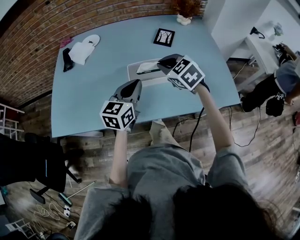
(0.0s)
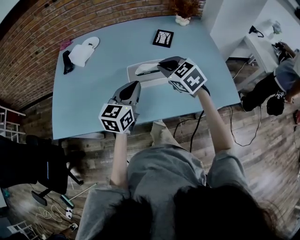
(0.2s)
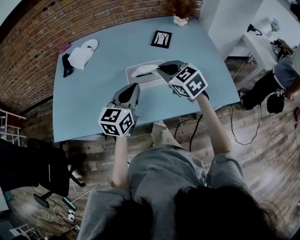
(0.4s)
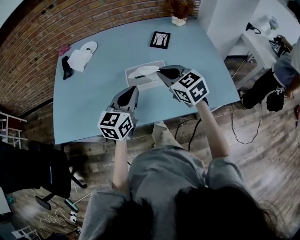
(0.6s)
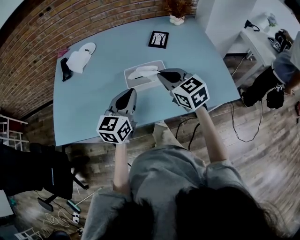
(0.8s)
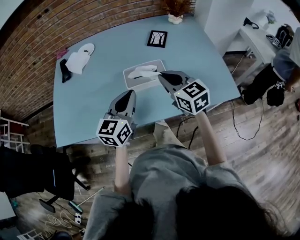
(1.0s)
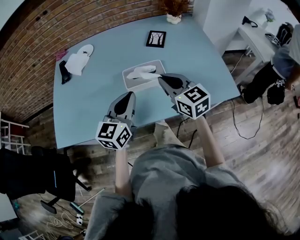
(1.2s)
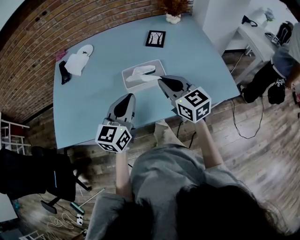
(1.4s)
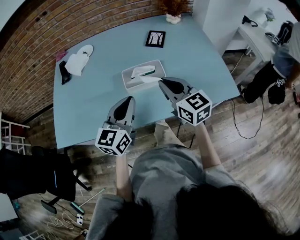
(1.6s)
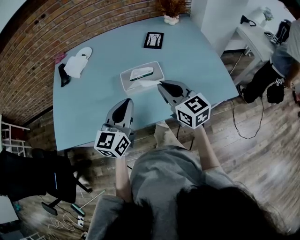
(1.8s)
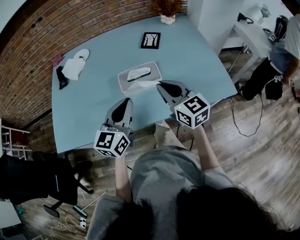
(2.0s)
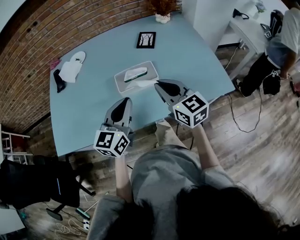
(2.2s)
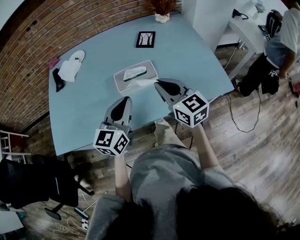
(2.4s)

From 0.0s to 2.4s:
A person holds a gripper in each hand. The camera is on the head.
From 0.0s to 1.2s: The left gripper moves some 5 cm; the right gripper is displaced backward by about 5 cm, and turns by roughly 30 degrees.
From 1.2s to 2.4s: There are only small adjustments of the grippers.

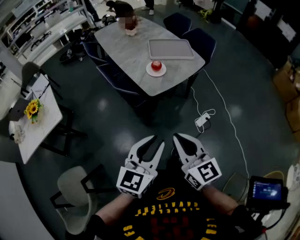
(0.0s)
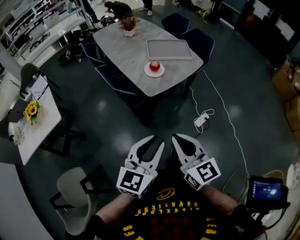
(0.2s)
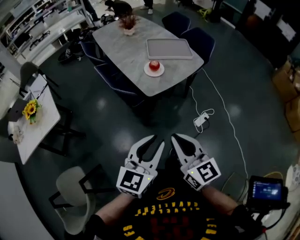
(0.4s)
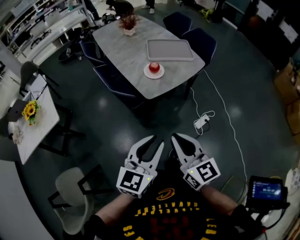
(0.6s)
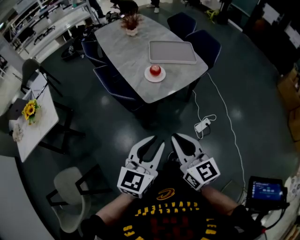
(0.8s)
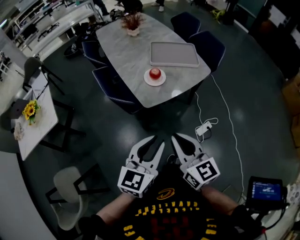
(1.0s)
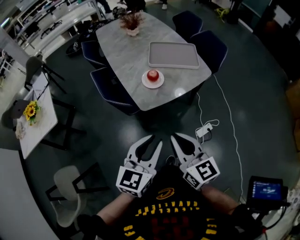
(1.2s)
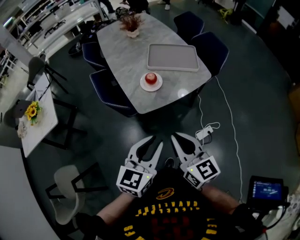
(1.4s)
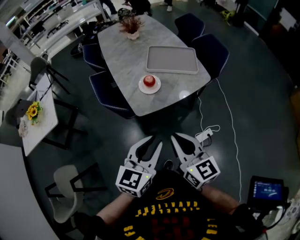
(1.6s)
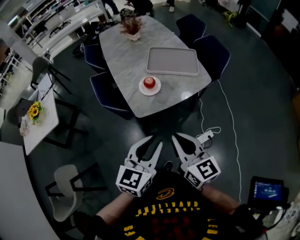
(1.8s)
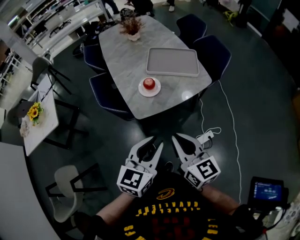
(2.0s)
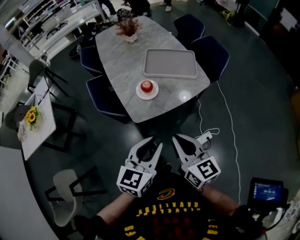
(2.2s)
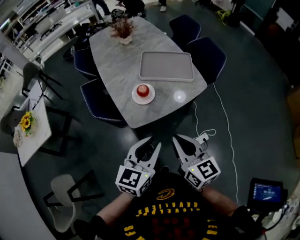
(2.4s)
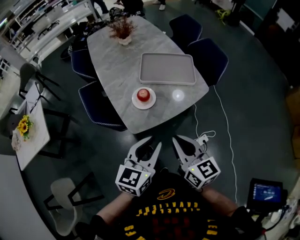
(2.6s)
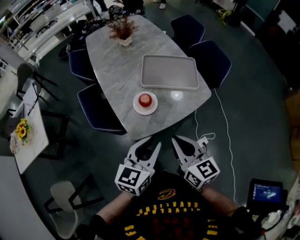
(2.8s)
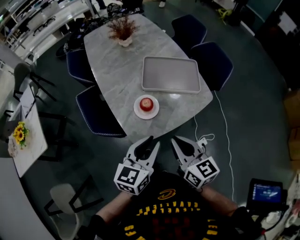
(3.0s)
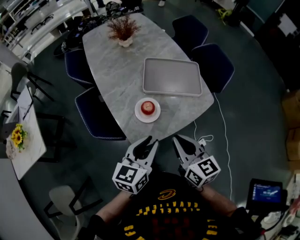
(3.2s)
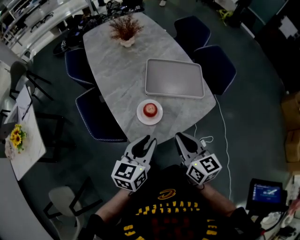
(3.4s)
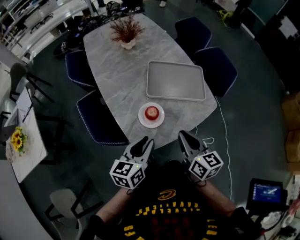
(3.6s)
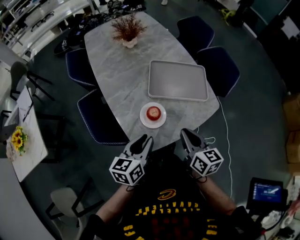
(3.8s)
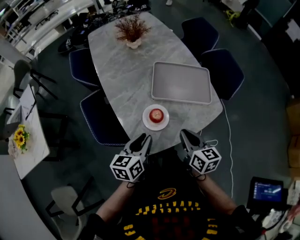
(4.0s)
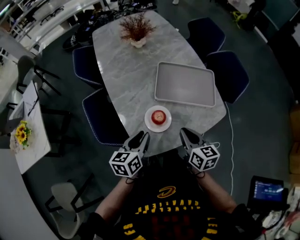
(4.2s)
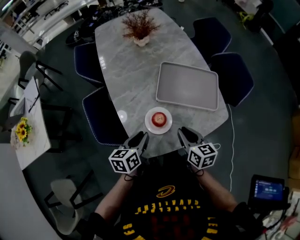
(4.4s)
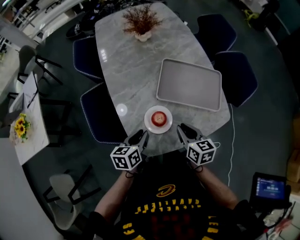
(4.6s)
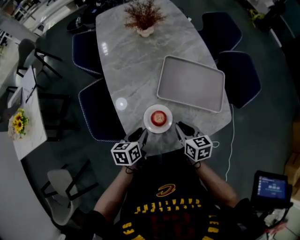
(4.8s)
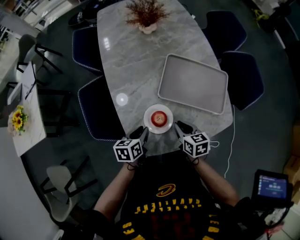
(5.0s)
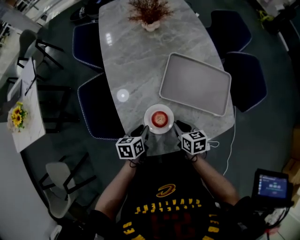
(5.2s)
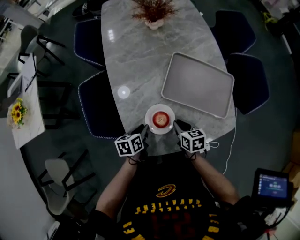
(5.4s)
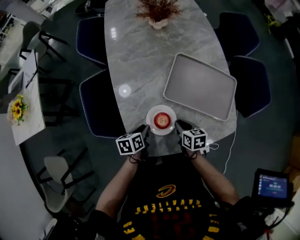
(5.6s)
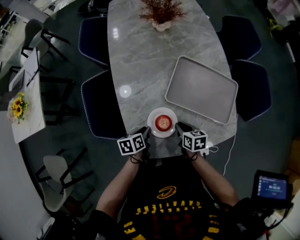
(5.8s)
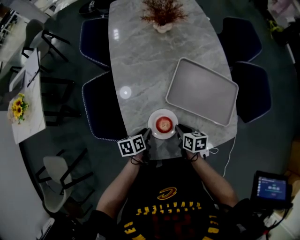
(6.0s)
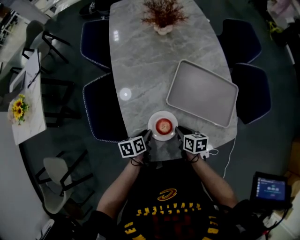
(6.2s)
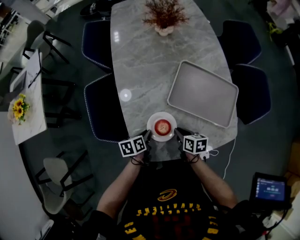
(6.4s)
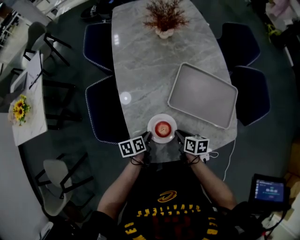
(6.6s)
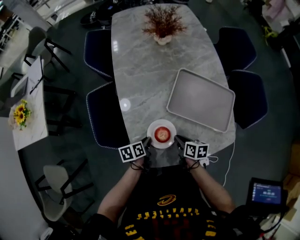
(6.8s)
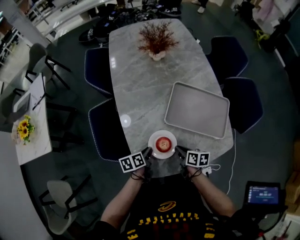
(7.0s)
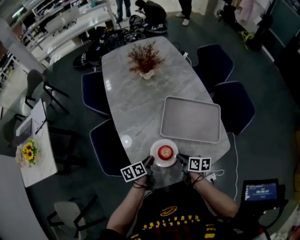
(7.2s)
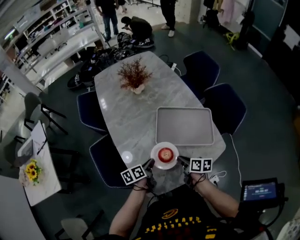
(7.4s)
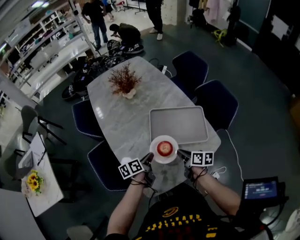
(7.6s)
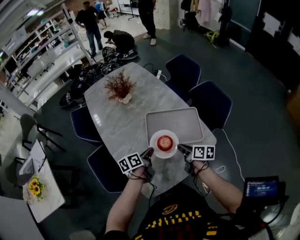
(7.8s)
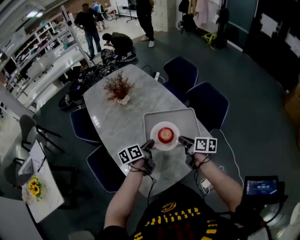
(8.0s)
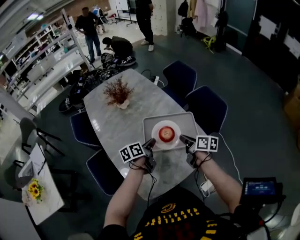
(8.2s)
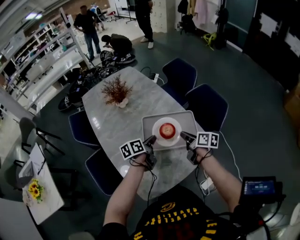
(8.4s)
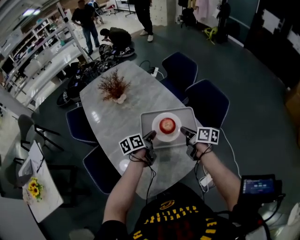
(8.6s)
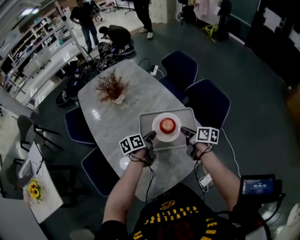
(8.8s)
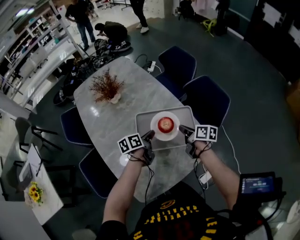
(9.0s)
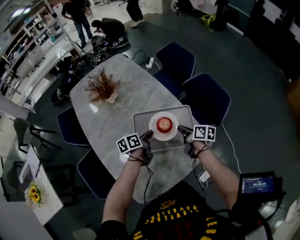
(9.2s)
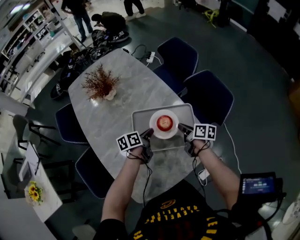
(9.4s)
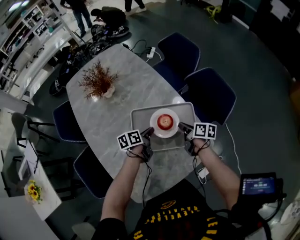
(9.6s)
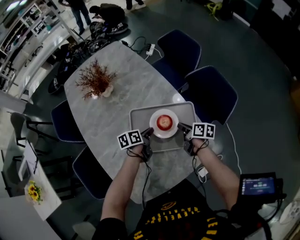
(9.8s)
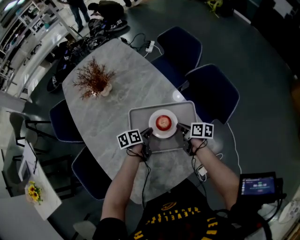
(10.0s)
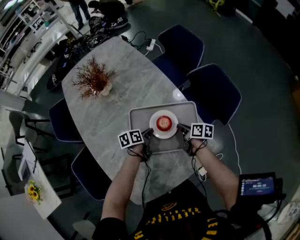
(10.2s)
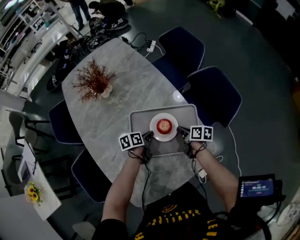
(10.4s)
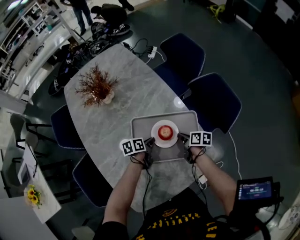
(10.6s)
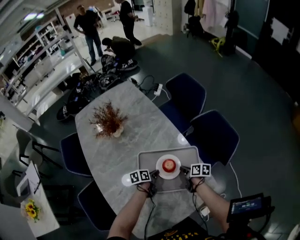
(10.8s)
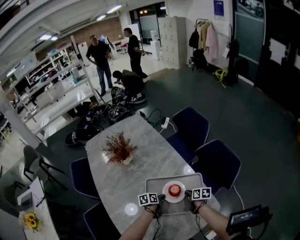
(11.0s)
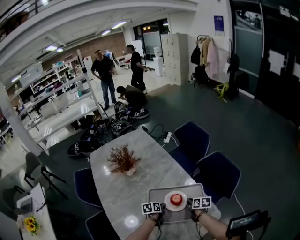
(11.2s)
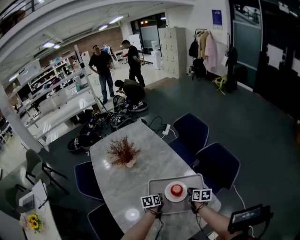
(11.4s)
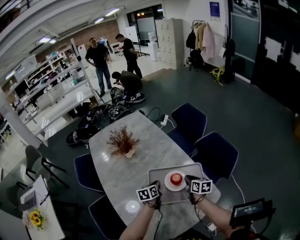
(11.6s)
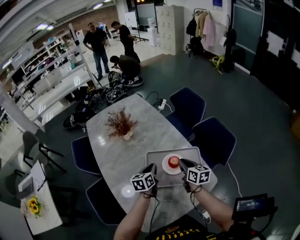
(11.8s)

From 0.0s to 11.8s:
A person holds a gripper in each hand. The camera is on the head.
From 0.0s to 1.4s: The two grippers go some 20 cm forward and to the right.
From 1.4s to 3.0s: Both grippers travel together forward, roughly 20 cm.
From 3.0s to 4.4s: The left gripper travels downward, forward and to the left by some 20 cm, and turns by approximately 30 degrees. Meanwhile the right gripper is displaced forward and downward by roughly 20 cm.
From 4.4s to 6.0s: Both grippers move downward, approximately 15 cm. The right gripper turns by some 30 degrees. The left gripper swivels approximately 30 degrees.
From 6.0s to 7.4s: The left gripper is displaced upward and forward by about 10 cm; the right gripper is displaced upward by approximately 10 cm, and changes its angle by roughly 30 degrees.
From 7.4s to 8.8s: Both grippers move forward, to the right and upward, some 20 cm.
From 8.8s to 10.4s: The grippers both shift downward and forward by approximately 15 cm.
From 10.4s to 11.8s: Both grippers move upward, roughly 15 cm. The left gripper rotates roughly 40 degrees; the right gripper turns by about 40 degrees.

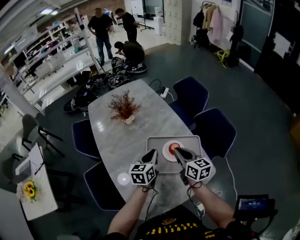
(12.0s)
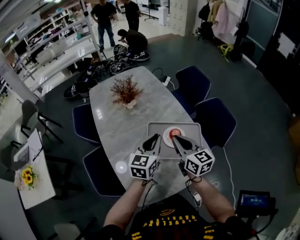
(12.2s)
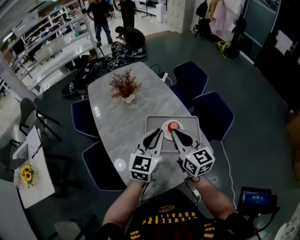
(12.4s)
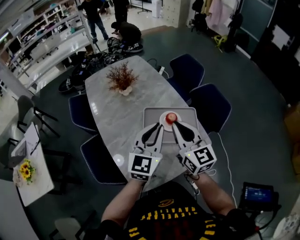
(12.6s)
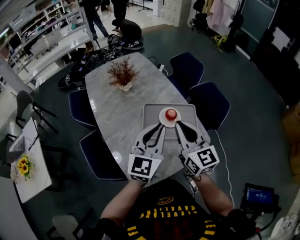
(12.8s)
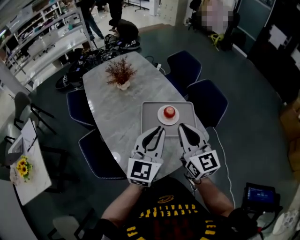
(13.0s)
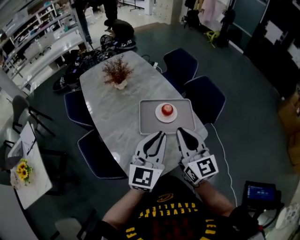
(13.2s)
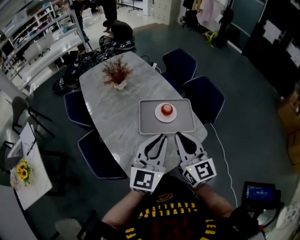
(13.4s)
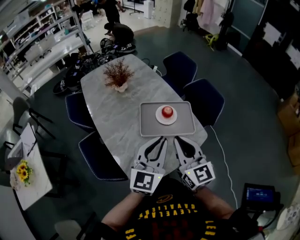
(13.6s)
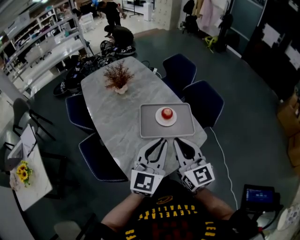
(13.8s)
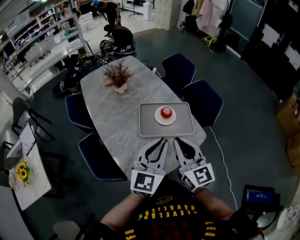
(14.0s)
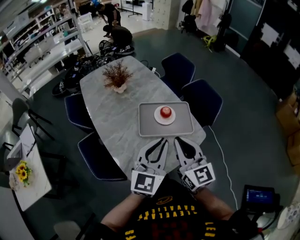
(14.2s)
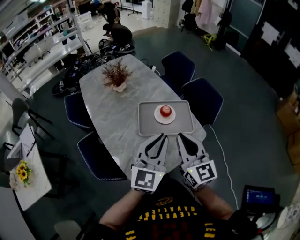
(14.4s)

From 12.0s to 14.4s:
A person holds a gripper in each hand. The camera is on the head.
From 12.0s to 13.2s: The grippers both shift backward and upward by about 25 cm. The left gripper turns by approximately 30 degrees; the right gripper turns by about 30 degrees.
From 13.2s to 14.4s: The grippers stay close to where they were, moving slightly.

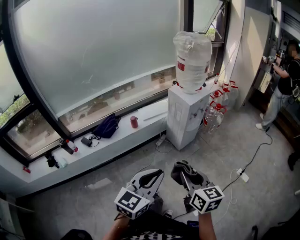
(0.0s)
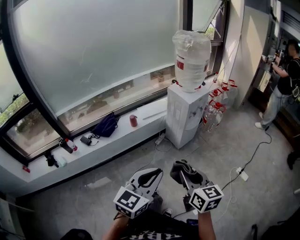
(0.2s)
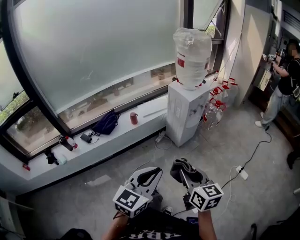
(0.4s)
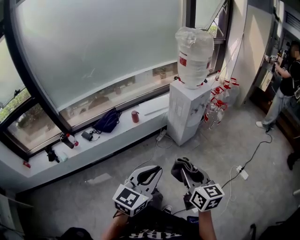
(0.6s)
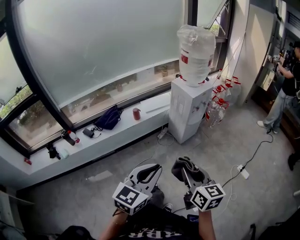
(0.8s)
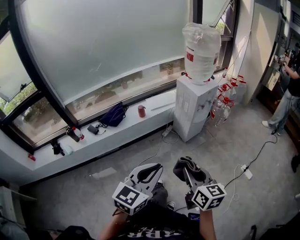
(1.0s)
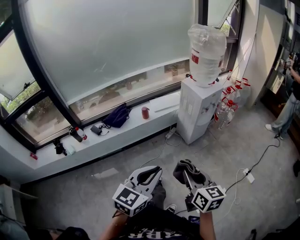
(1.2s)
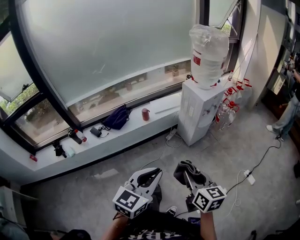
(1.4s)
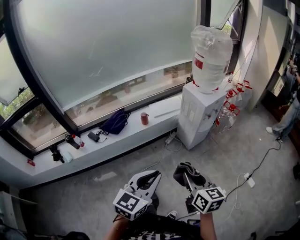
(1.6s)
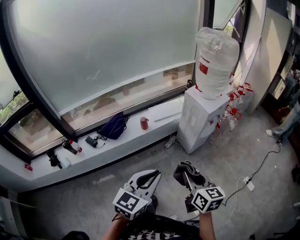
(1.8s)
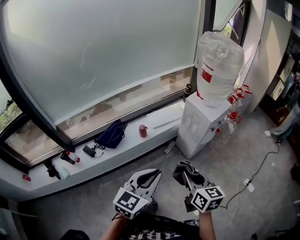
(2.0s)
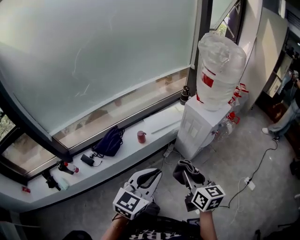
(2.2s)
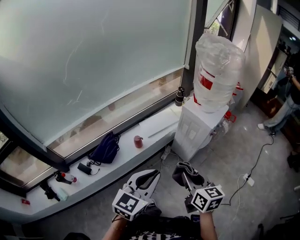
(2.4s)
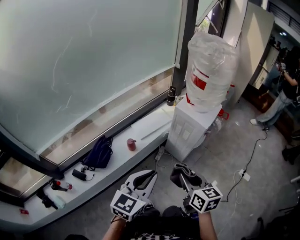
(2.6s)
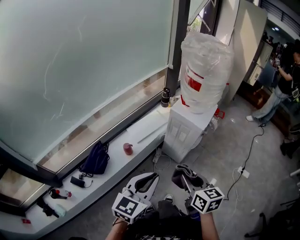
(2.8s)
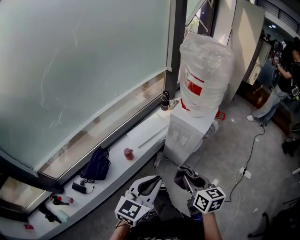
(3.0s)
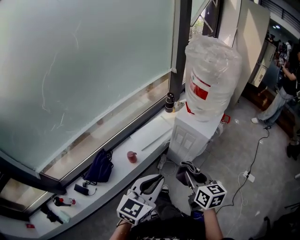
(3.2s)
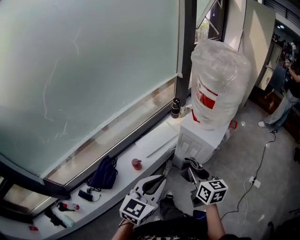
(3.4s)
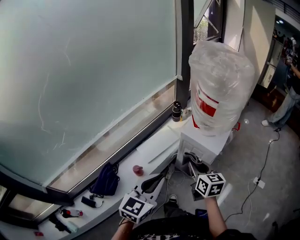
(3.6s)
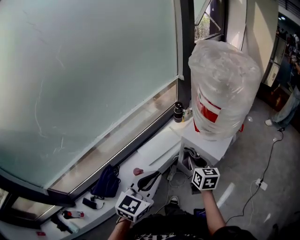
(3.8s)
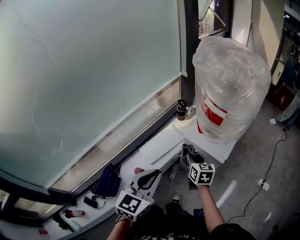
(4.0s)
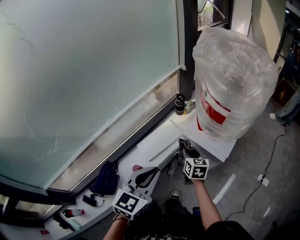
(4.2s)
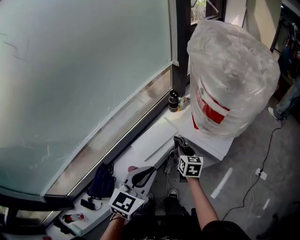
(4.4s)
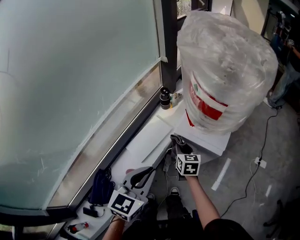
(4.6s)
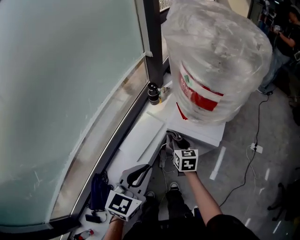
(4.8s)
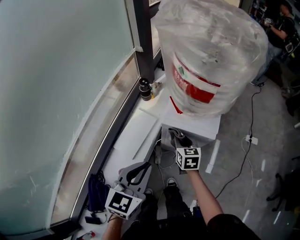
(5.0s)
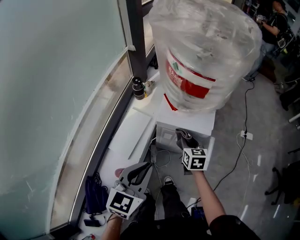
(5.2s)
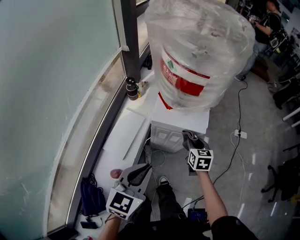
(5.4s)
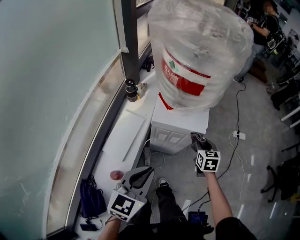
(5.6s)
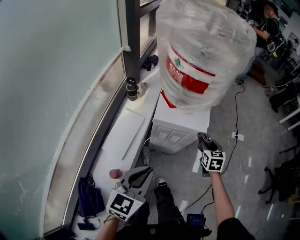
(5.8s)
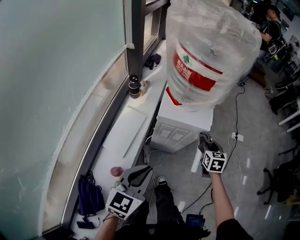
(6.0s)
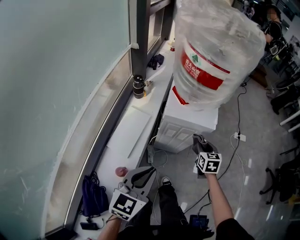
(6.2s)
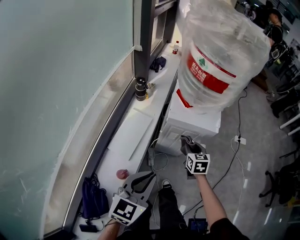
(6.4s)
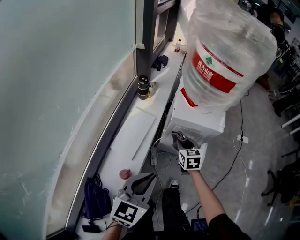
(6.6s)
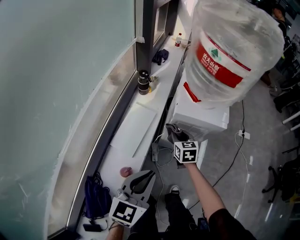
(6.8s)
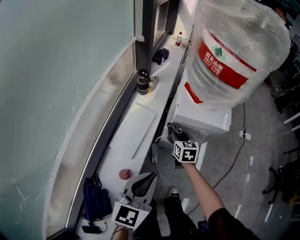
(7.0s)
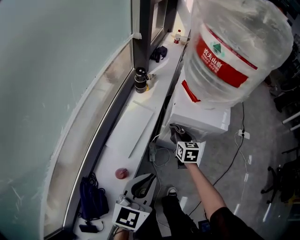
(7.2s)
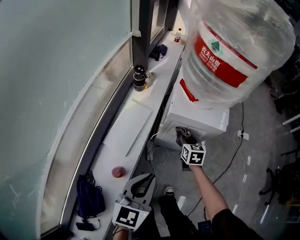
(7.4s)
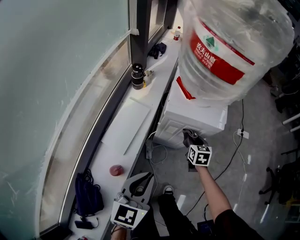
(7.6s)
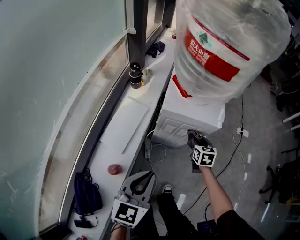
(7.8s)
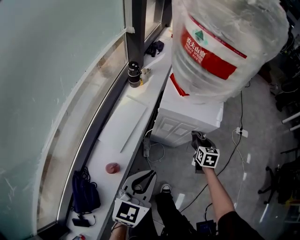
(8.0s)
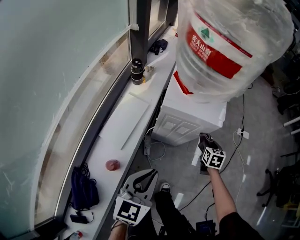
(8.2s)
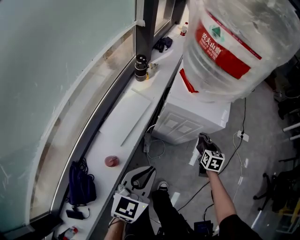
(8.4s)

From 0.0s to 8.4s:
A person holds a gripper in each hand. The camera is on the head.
From 0.0s to 1.4s: The grippers stay close to where they were, moving slightly.
From 1.4s to 2.8s: The grippers both shift forward and to the left by some 35 cm.
From 2.8s to 4.2s: The grippers both shift forward by some 35 cm.
From 4.2s to 5.6s: The left gripper travels downward by about 10 cm, and rotates approximately 30 degrees, while the right gripper moves about 20 cm, and rotates roughly 30 degrees.
From 5.6s to 7.0s: The right gripper heads to the left and downward, covering approximately 25 cm, while the left gripper moves to the left and downward, roughly 10 cm.
From 7.0s to 8.4s: The left gripper heads to the right and downward, covering roughly 10 cm, while the right gripper goes approximately 25 cm to the right.
